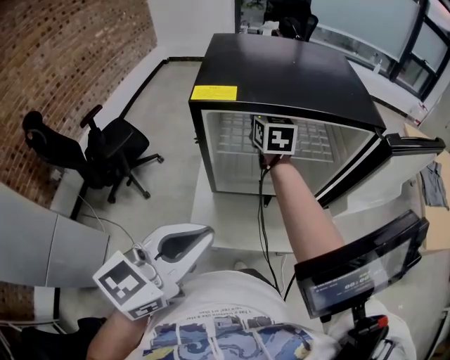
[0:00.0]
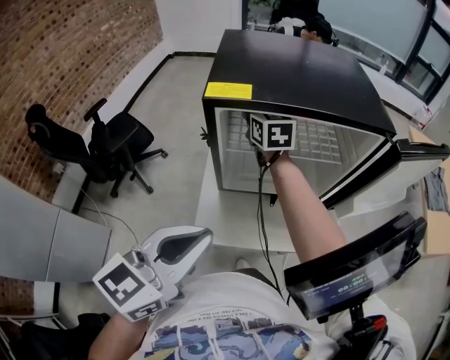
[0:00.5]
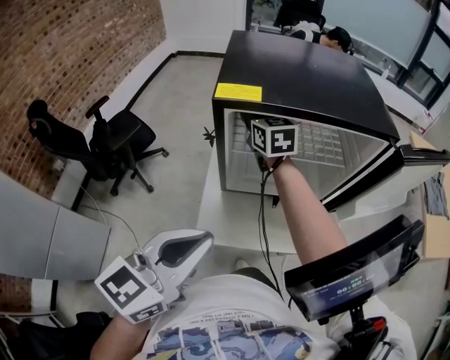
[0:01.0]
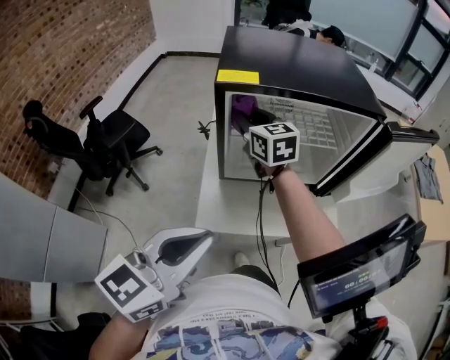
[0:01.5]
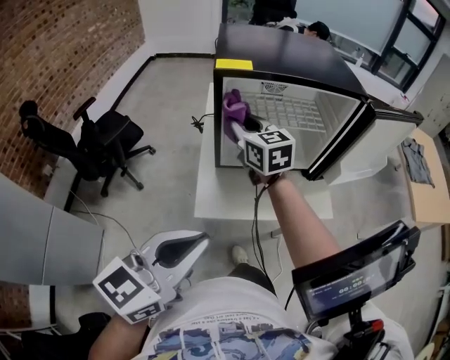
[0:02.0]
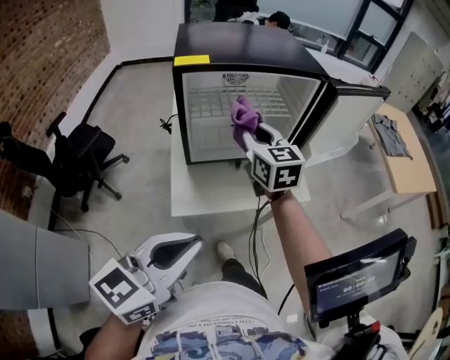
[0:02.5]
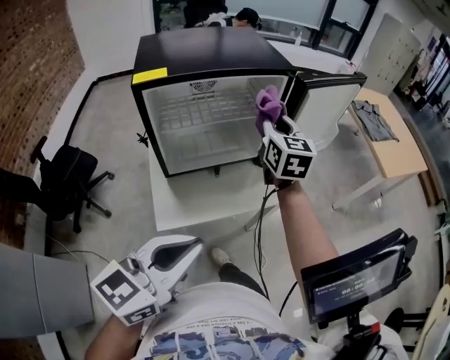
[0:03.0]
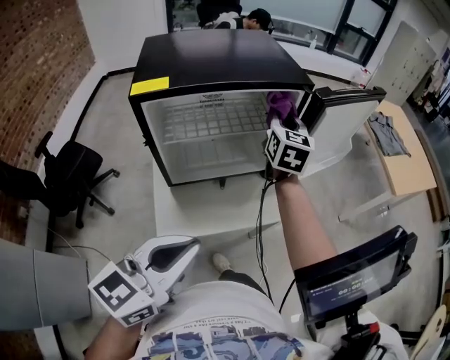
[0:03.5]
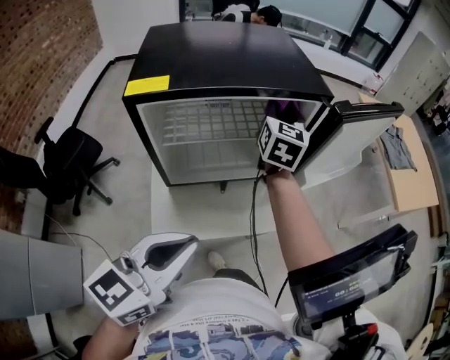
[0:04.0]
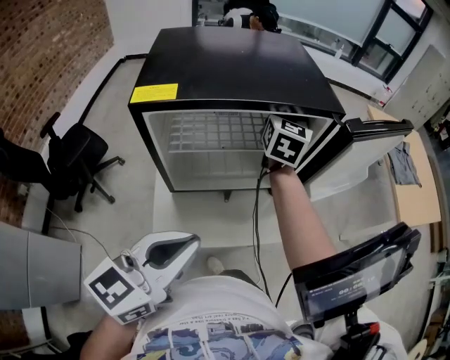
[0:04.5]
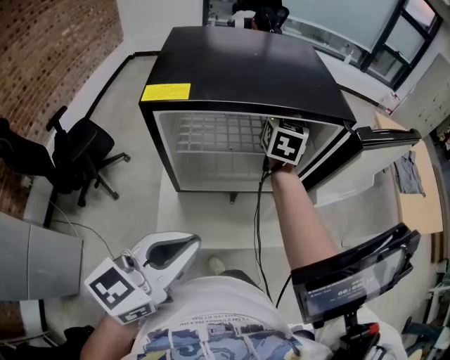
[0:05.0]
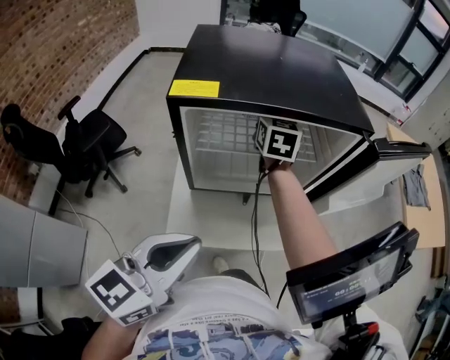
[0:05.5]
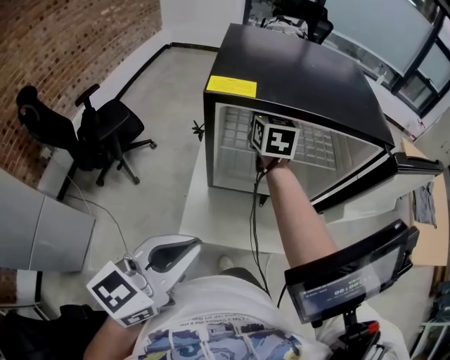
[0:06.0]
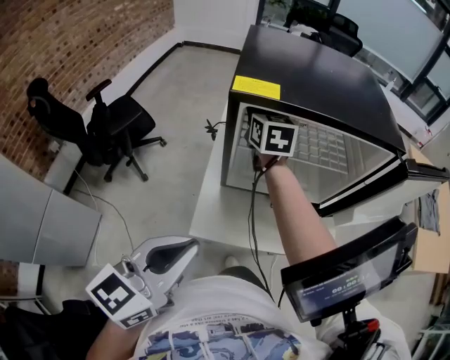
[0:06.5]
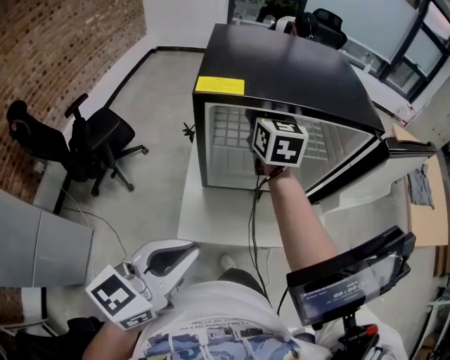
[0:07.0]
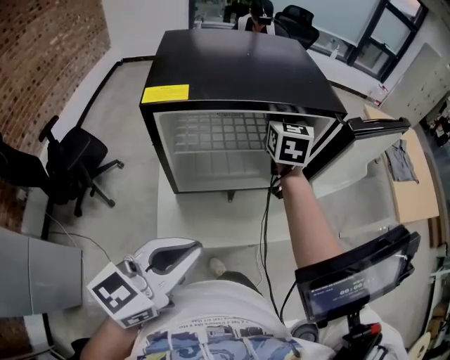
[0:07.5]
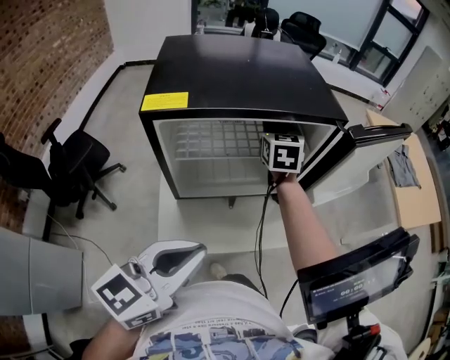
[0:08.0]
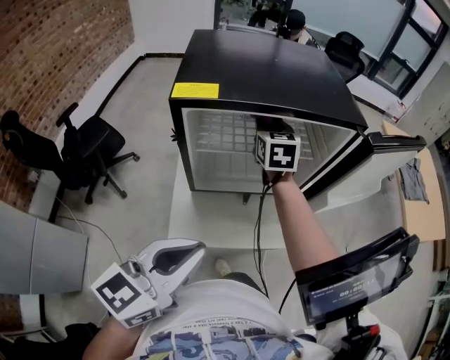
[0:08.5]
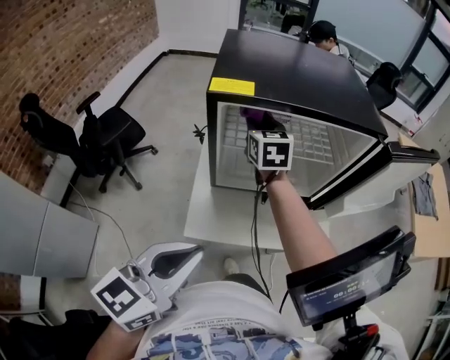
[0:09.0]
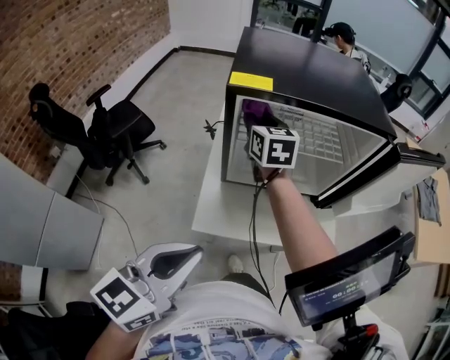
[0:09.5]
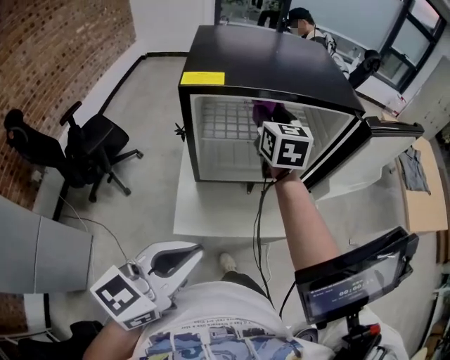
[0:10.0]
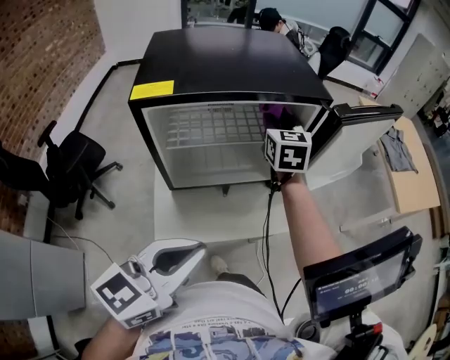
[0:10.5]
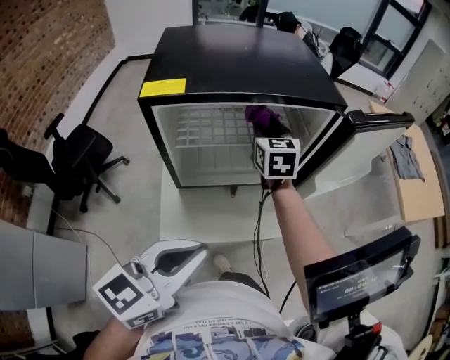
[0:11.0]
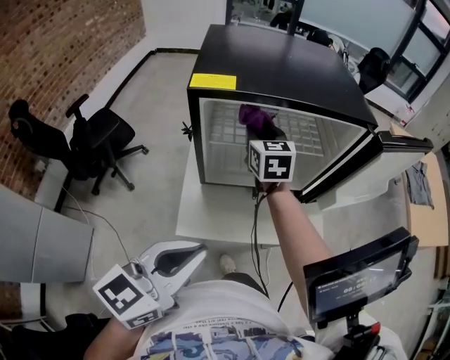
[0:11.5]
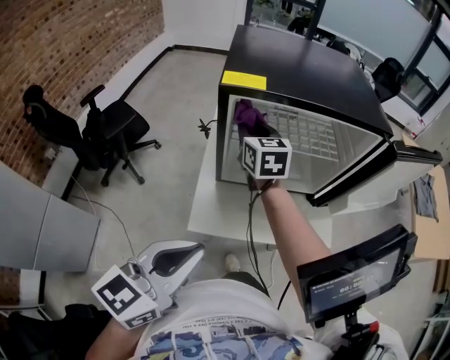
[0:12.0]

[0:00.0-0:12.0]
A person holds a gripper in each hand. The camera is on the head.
0.0 to 2.0 s: The right gripper shifts some 15 cm backward. Meanwhile the left gripper is displaced backward by approximately 10 cm.
2.0 to 4.0 s: The right gripper shifts by approximately 30 cm, and swivels some 50 degrees, while the left gripper shifts by some 10 cm.
4.0 to 6.0 s: The right gripper is displaced to the left by some 25 cm, and swivels approximately 30 degrees. Meanwhile the left gripper goes about 5 cm to the left.
6.0 to 8.0 s: The left gripper shifts about 5 cm to the right, while the right gripper goes some 20 cm to the right.
8.0 to 10.0 s: The right gripper travels to the left and backward by about 10 cm. Meanwhile the left gripper goes some 5 cm backward.
10.0 to 12.0 s: The right gripper is displaced to the left and downward by approximately 15 cm.

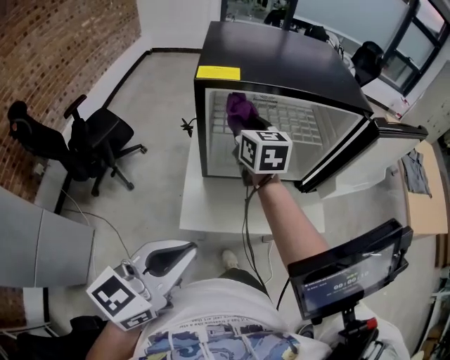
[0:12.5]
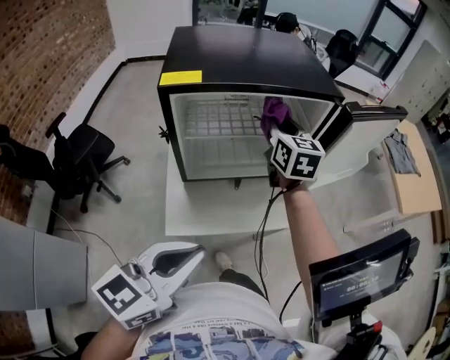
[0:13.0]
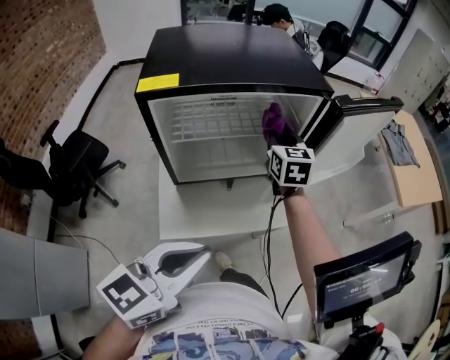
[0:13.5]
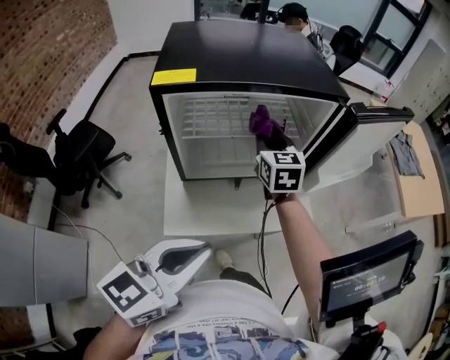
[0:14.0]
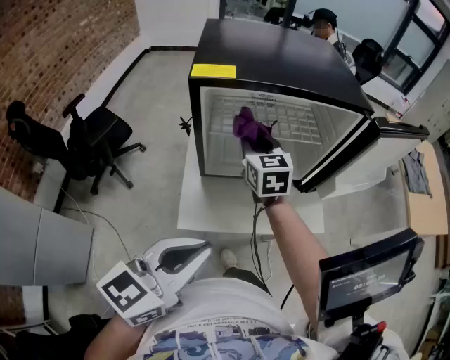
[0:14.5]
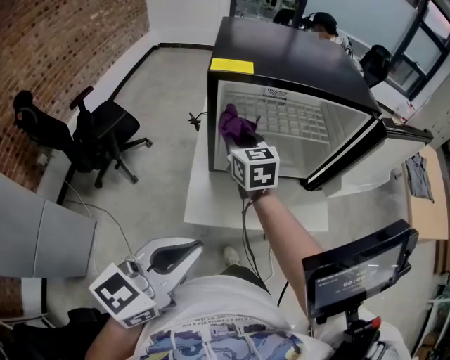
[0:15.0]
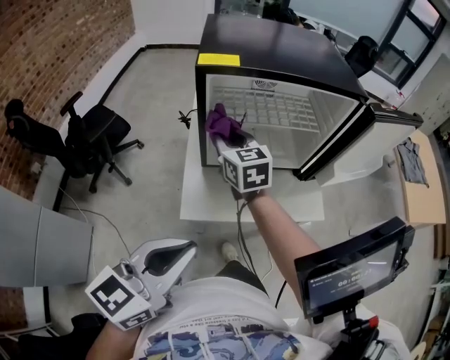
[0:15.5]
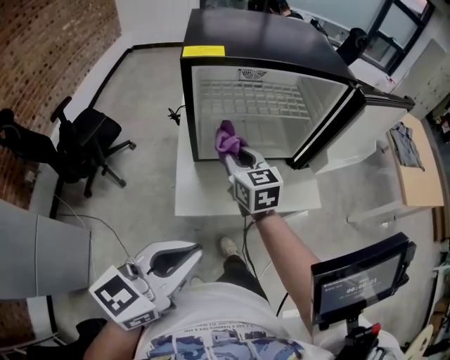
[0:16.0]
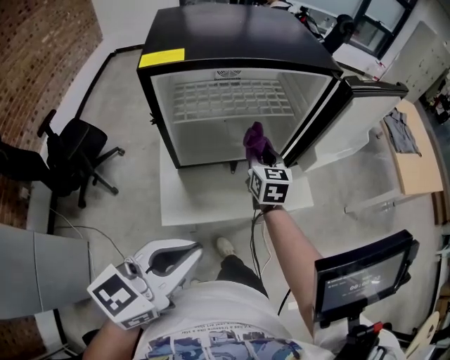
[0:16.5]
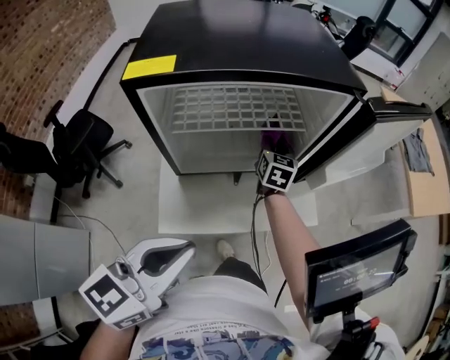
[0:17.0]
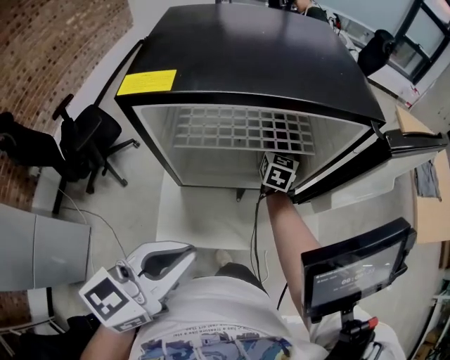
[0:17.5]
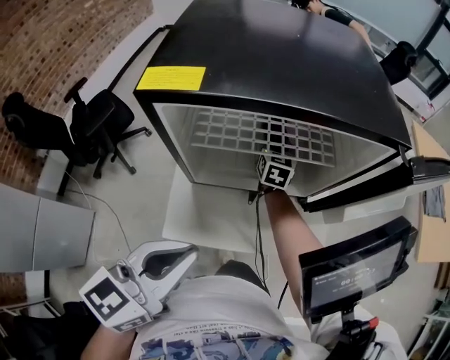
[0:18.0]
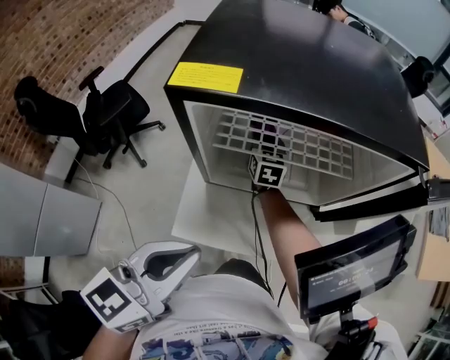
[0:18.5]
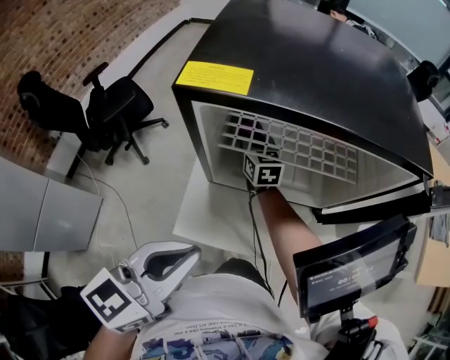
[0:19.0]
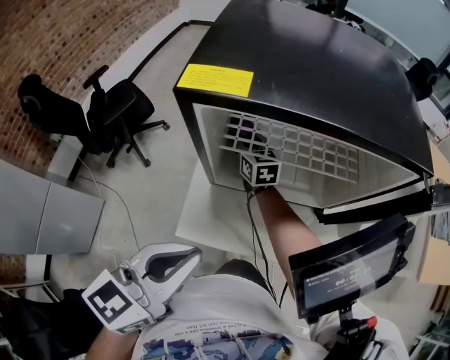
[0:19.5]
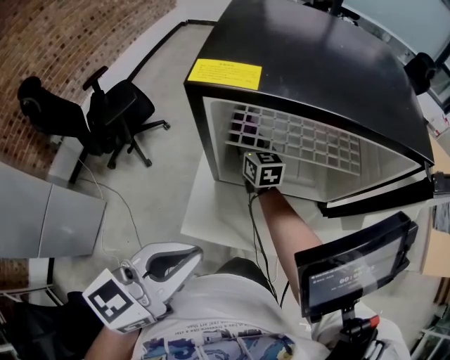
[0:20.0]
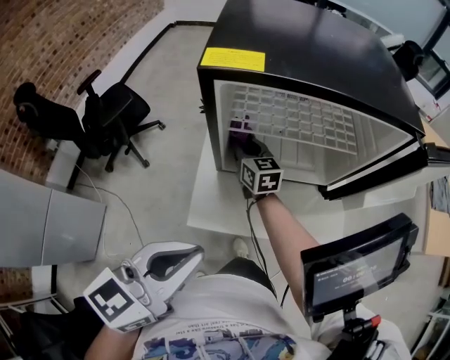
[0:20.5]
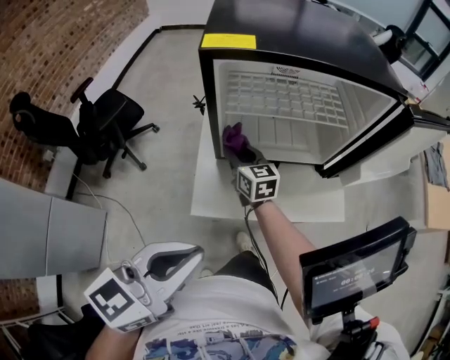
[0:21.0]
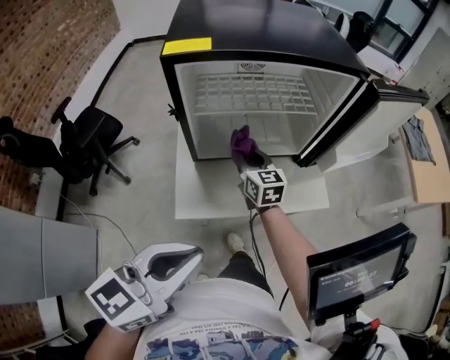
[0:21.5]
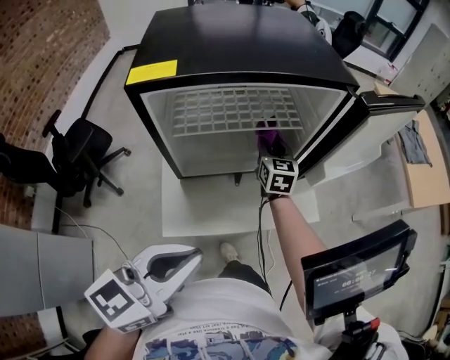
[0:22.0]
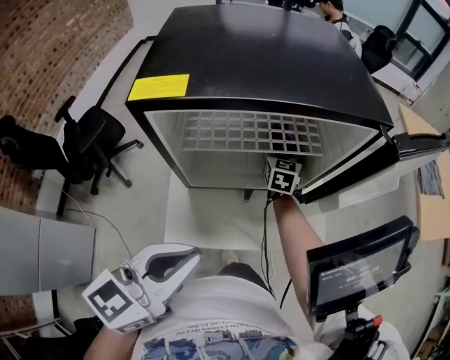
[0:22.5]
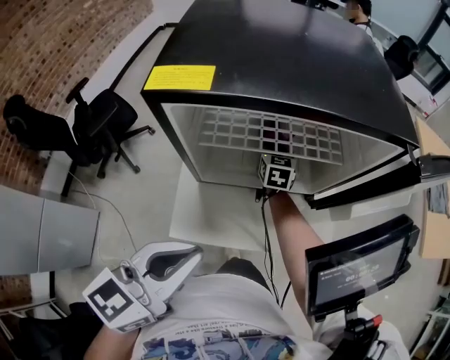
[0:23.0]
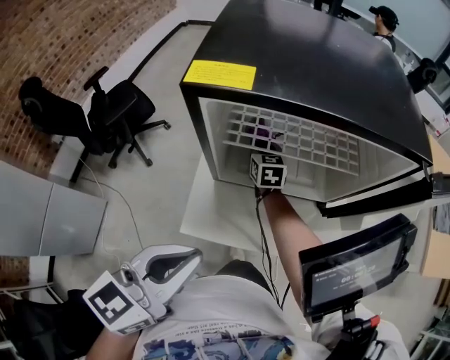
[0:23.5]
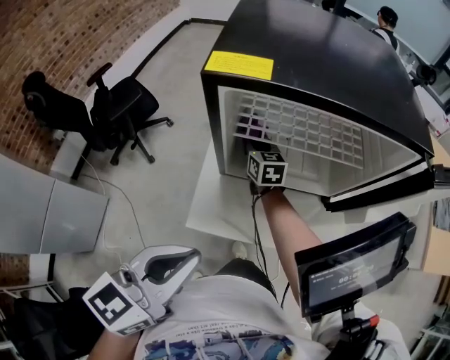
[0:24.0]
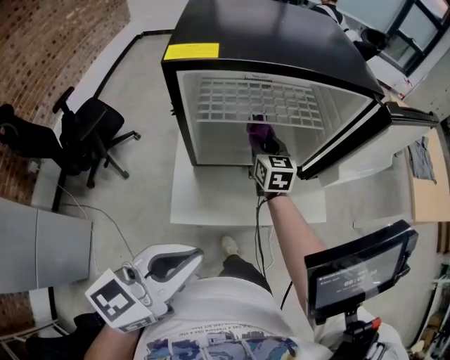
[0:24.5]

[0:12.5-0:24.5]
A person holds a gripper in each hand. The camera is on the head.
12.5 to 14.5 s: The right gripper goes to the right and returns, some 20 cm each way.
14.5 to 16.5 s: The right gripper is displaced to the right and downward by some 15 cm.
16.5 to 18.5 s: The left gripper moves forward, approximately 10 cm, and rotates approximately 20 degrees; the right gripper moves to the left and forward, about 20 cm.
18.5 to 20.5 s: The right gripper moves backward and to the left, approximately 15 cm. Meanwhile the left gripper ends up roughly 5 cm from where it was.
20.5 to 22.5 s: The right gripper shifts about 25 cm to the right and forward, and turns by approximately 40 degrees, while the left gripper shifts about 5 cm forward.
22.5 to 24.5 s: The left gripper moves backward, about 10 cm. Meanwhile the right gripper is displaced backward and upward by approximately 10 cm, and goes to the left and returns, some 20 cm each way.

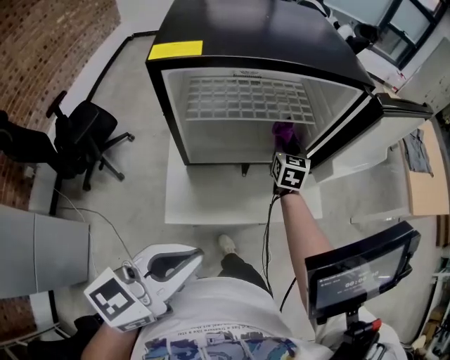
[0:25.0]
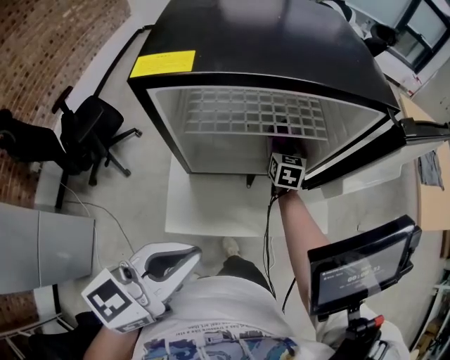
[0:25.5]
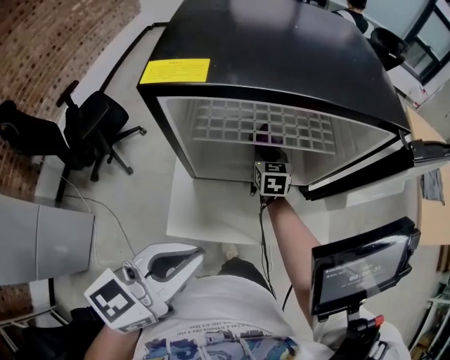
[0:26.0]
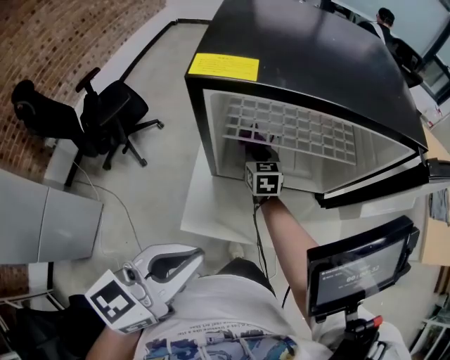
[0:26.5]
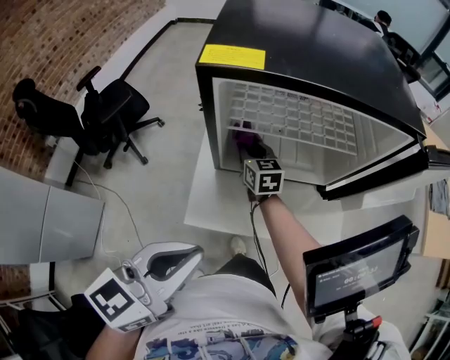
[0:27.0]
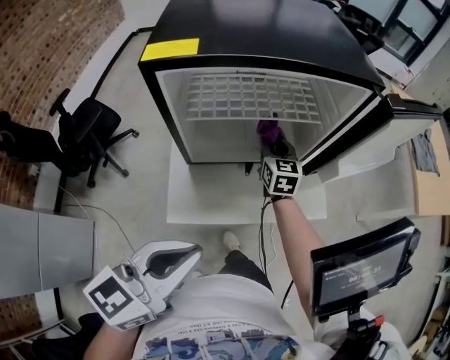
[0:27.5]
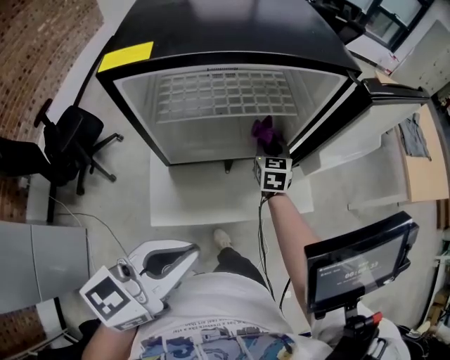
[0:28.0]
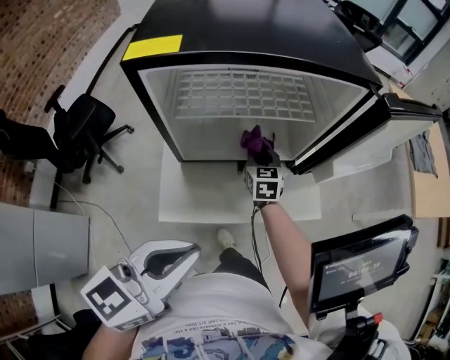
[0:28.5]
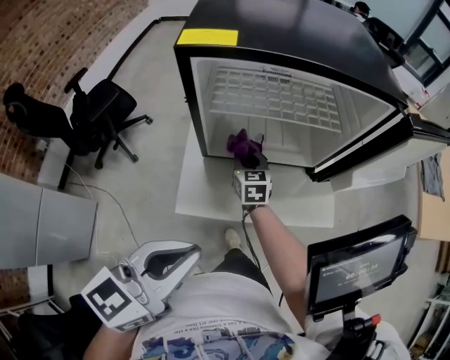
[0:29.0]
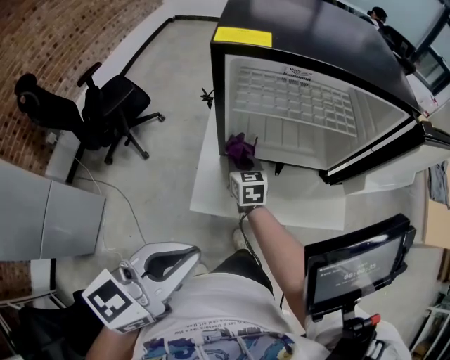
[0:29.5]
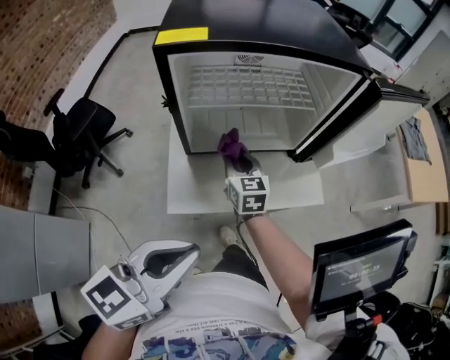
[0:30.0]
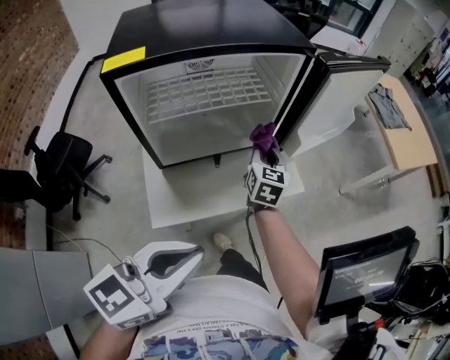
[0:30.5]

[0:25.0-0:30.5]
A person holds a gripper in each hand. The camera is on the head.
25.0 to 27.0 s: The left gripper moves about 5 cm. The right gripper heads to the left, covering some 25 cm, and changes its angle by about 30 degrees.
27.0 to 28.5 s: The left gripper shifts roughly 5 cm to the right. Meanwhile the right gripper moves to the right, approximately 15 cm, and turns by some 20 degrees.
28.5 to 30.5 s: The right gripper ends up approximately 15 cm from where it was, and swivels approximately 30 degrees.
